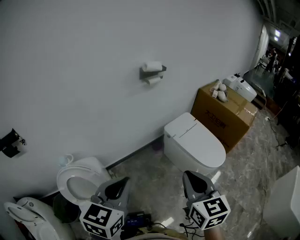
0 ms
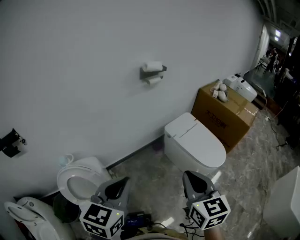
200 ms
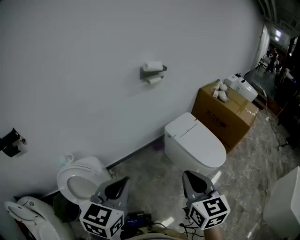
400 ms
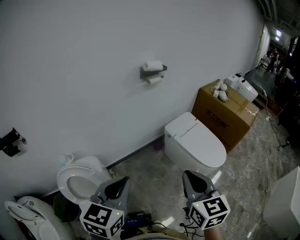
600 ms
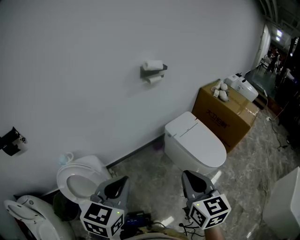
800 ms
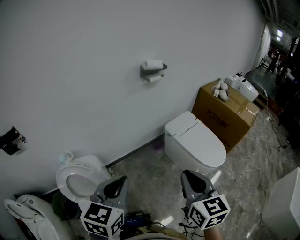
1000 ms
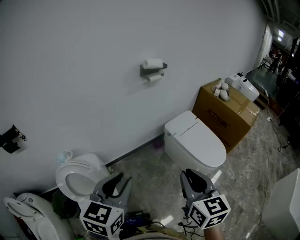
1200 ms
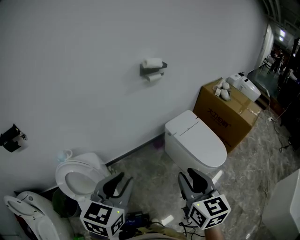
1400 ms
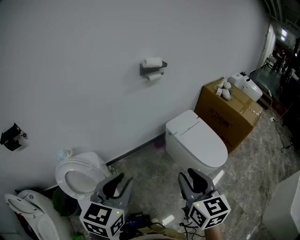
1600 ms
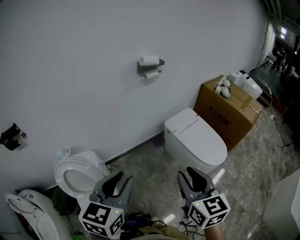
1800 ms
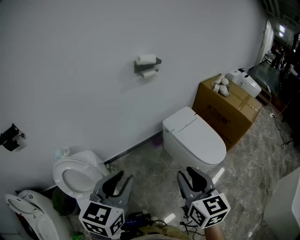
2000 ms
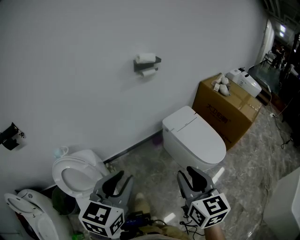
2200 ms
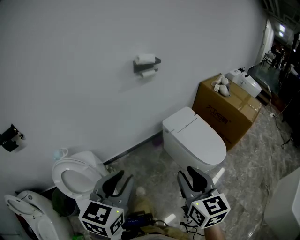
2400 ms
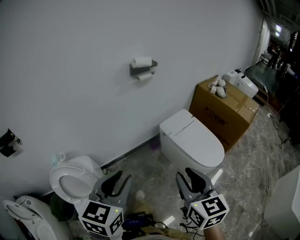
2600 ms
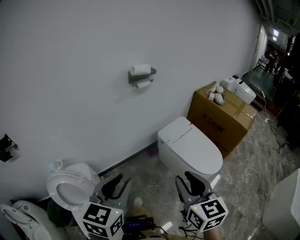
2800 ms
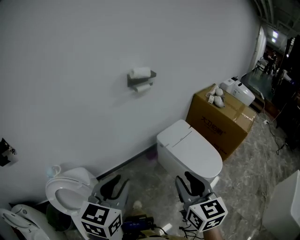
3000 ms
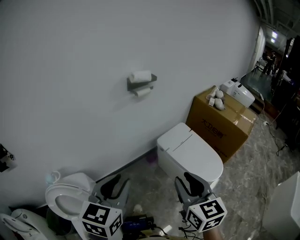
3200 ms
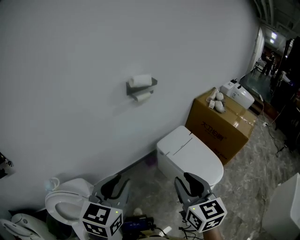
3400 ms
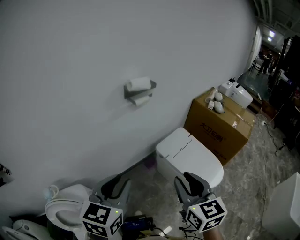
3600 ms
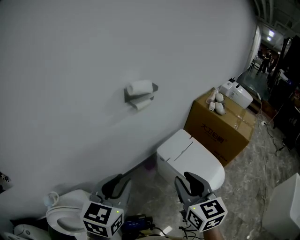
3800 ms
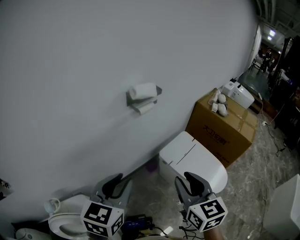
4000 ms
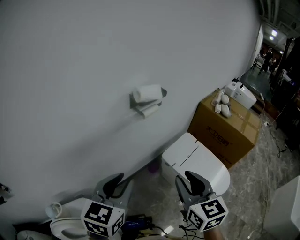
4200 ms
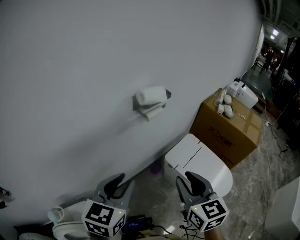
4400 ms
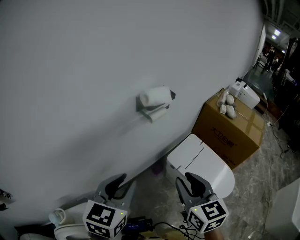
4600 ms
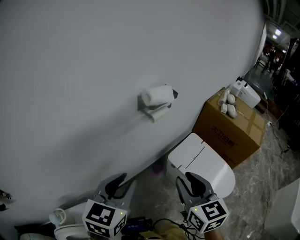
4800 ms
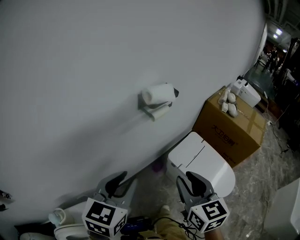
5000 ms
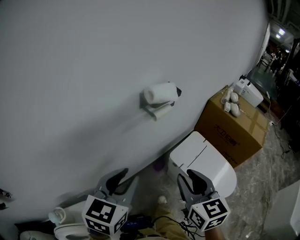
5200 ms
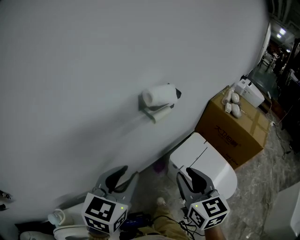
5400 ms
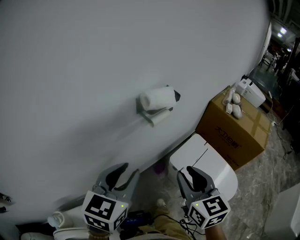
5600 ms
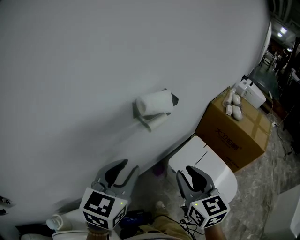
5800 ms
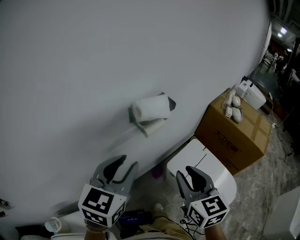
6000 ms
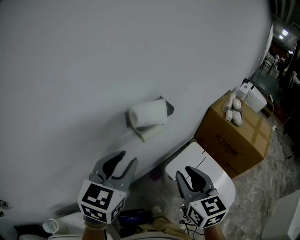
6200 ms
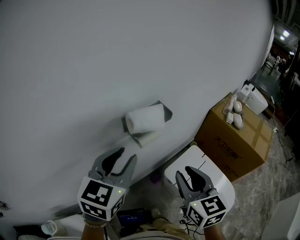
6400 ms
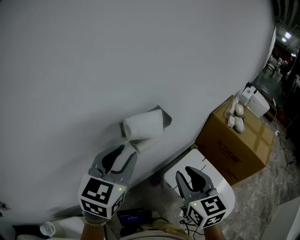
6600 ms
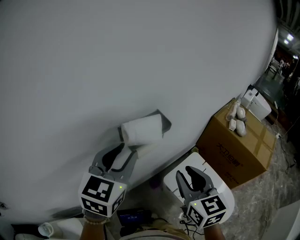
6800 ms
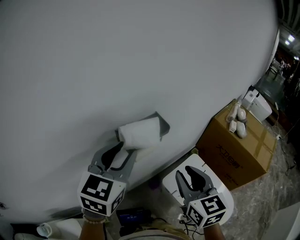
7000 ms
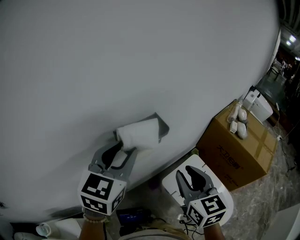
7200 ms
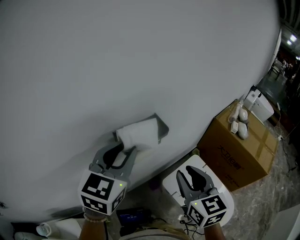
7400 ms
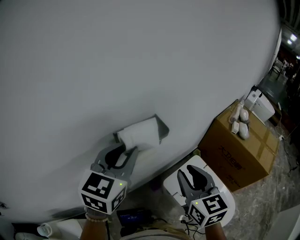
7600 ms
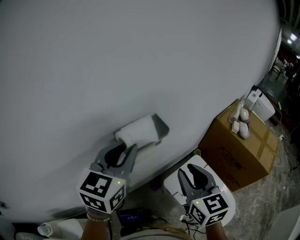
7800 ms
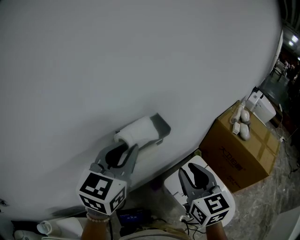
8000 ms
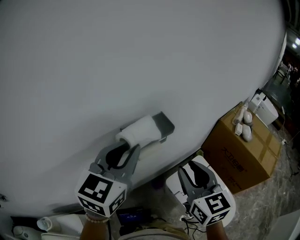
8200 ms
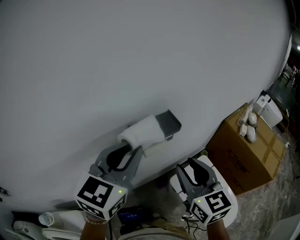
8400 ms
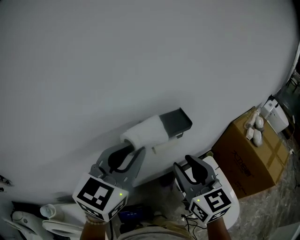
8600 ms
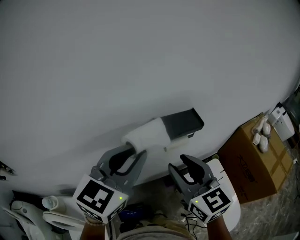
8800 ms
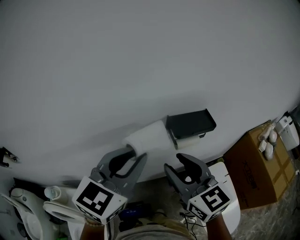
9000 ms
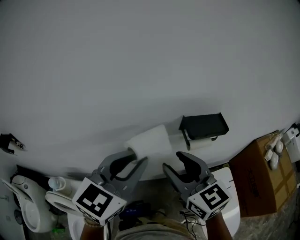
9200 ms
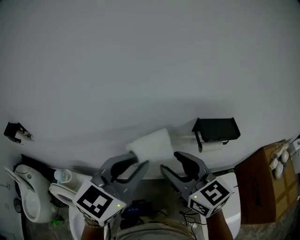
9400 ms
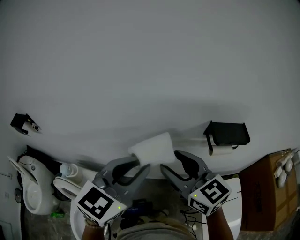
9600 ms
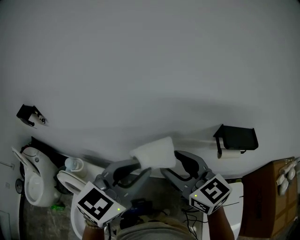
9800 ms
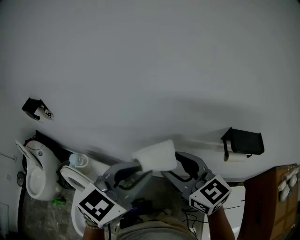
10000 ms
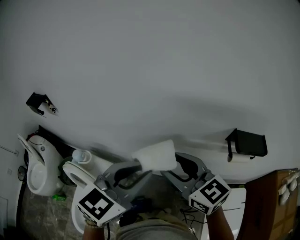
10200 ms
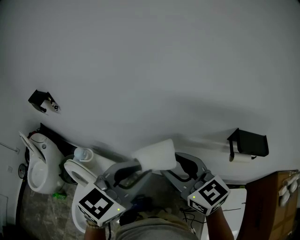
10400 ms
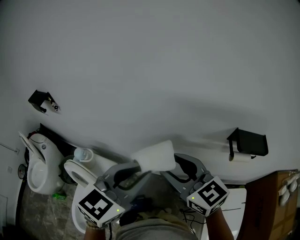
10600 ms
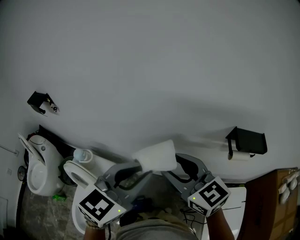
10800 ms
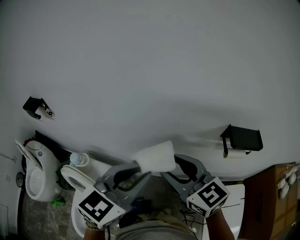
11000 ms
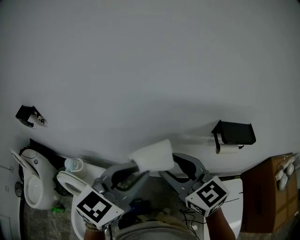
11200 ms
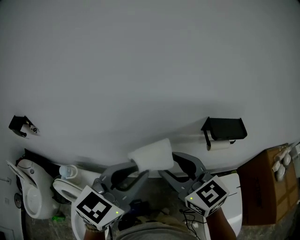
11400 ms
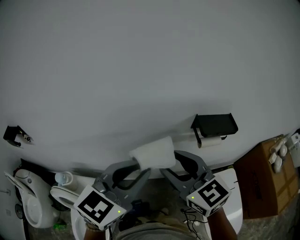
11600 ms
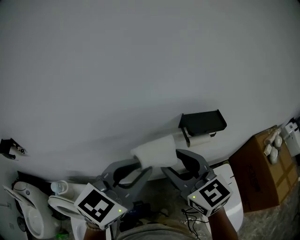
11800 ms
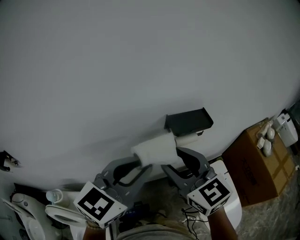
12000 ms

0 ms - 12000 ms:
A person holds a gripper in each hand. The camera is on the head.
0 ms - 1600 ms: The right gripper opens its fingers. The left gripper opens up.
1600 ms - 3000 ms: The grippers both shift forward by roughly 10 cm.
3000 ms - 4400 ms: Both grippers move forward, roughly 25 cm.
4400 ms - 6000 ms: Both grippers move forward, roughly 15 cm.
6000 ms - 7600 ms: The left gripper shifts about 15 cm forward; the right gripper shifts approximately 15 cm forward and to the right.
7600 ms - 9000 ms: The right gripper goes some 20 cm to the left, and swivels some 40 degrees. The left gripper travels backward and to the left by approximately 15 cm.
9000 ms - 10400 ms: The right gripper changes place by about 20 cm, and swivels about 40 degrees. The left gripper changes place by roughly 20 cm, and turns by roughly 20 degrees.
10400 ms - 12000 ms: The left gripper ends up roughly 20 cm from where it was, and swivels roughly 30 degrees, while the right gripper moves roughly 20 cm, and turns by roughly 30 degrees.

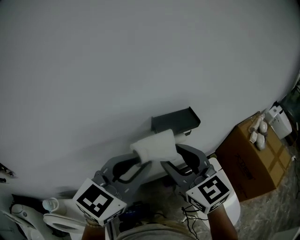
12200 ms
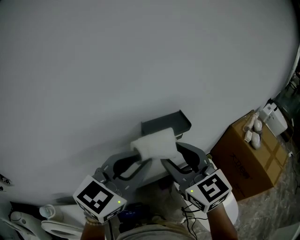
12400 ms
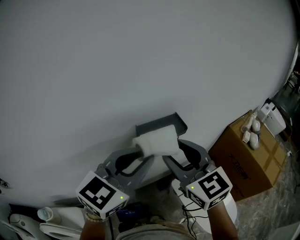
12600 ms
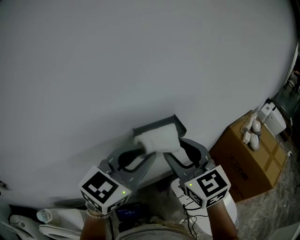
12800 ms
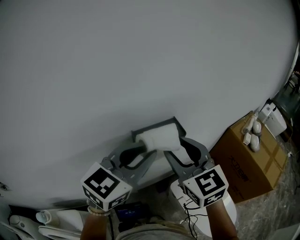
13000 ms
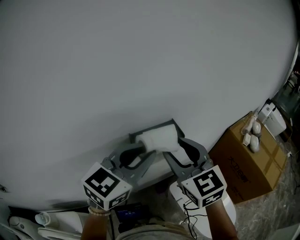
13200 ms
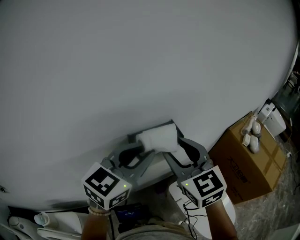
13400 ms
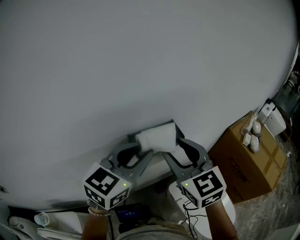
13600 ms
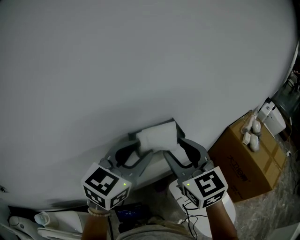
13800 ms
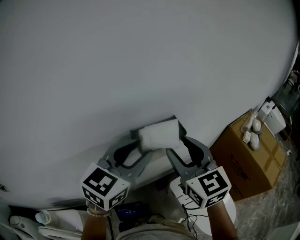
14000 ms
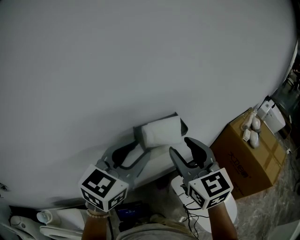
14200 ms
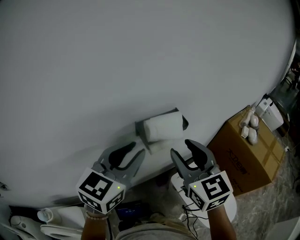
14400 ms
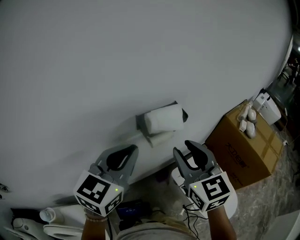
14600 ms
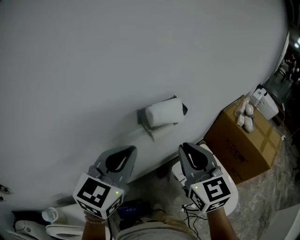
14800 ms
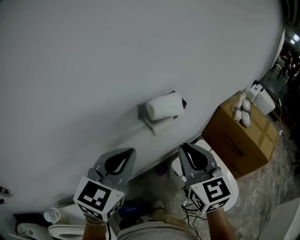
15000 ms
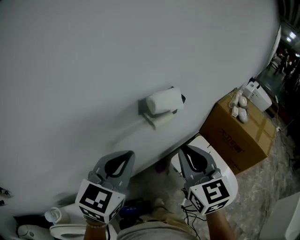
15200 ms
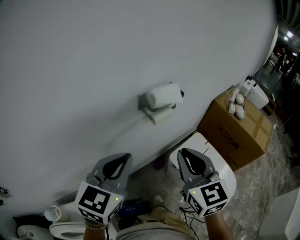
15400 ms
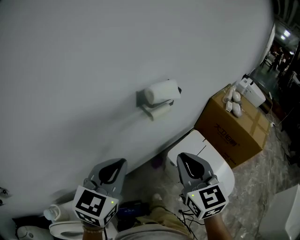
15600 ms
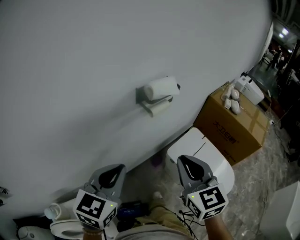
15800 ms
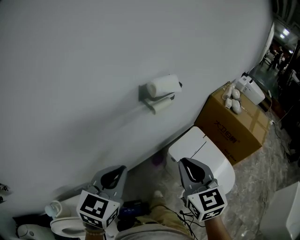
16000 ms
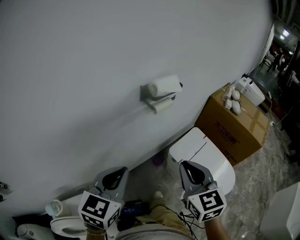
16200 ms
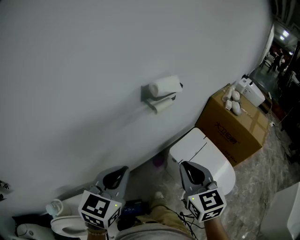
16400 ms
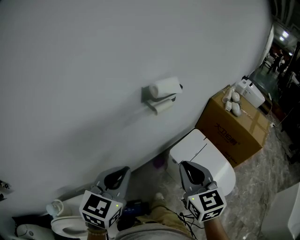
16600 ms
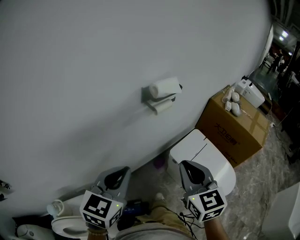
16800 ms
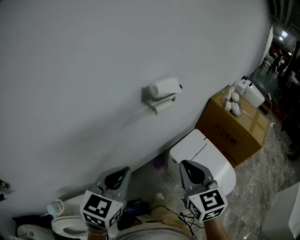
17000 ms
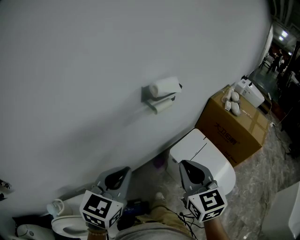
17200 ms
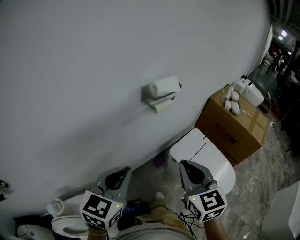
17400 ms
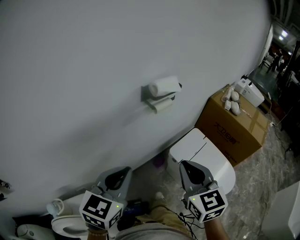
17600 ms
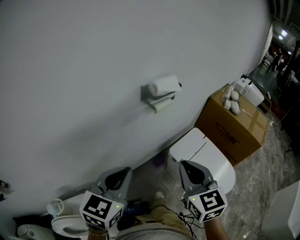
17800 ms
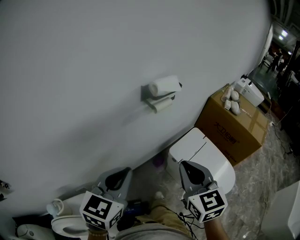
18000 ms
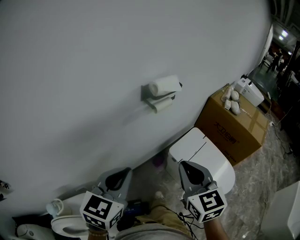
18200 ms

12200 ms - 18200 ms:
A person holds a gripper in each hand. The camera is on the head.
12200 ms - 13800 ms: Both grippers travel together forward and to the right, about 15 cm.
13800 ms - 15200 ms: The left gripper heads backward and to the left, covering roughly 20 cm, and closes its fingers. The right gripper heads backward, covering approximately 15 cm, and closes up.
15200 ms - 16600 ms: The two grippers go some 15 cm backward and downward.
16600 ms - 18200 ms: The two grippers keep their place.

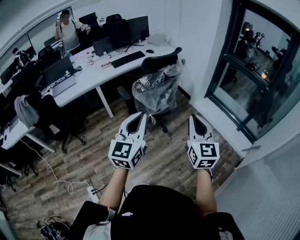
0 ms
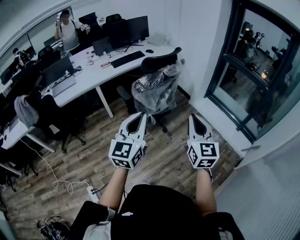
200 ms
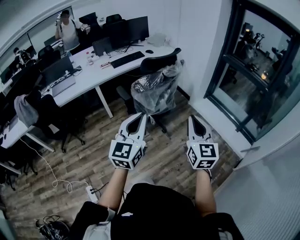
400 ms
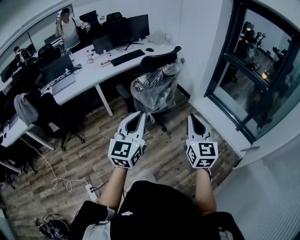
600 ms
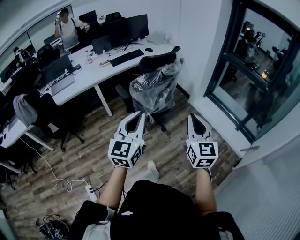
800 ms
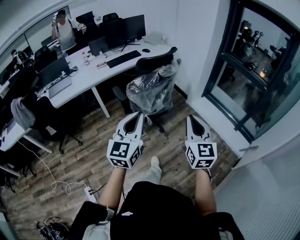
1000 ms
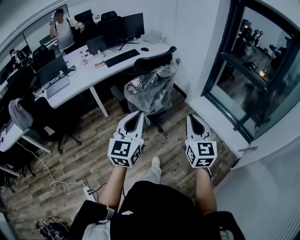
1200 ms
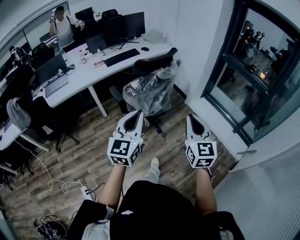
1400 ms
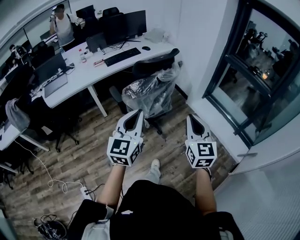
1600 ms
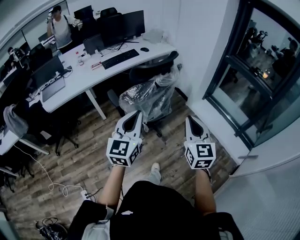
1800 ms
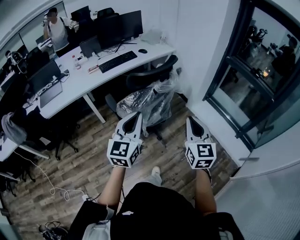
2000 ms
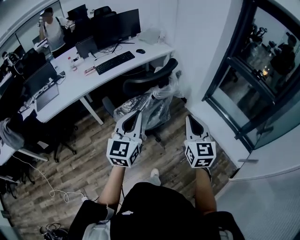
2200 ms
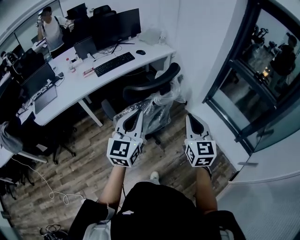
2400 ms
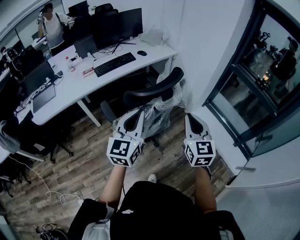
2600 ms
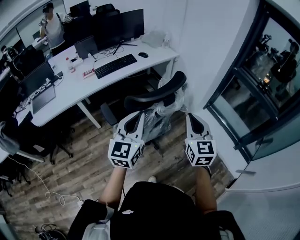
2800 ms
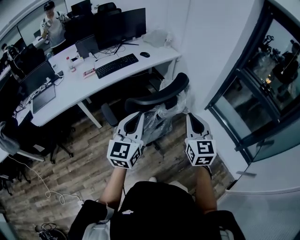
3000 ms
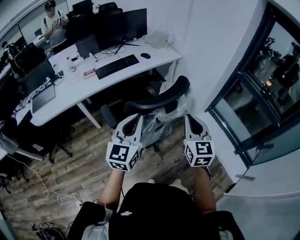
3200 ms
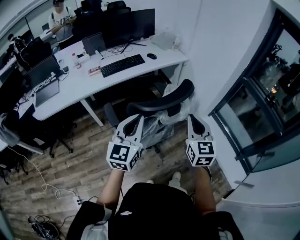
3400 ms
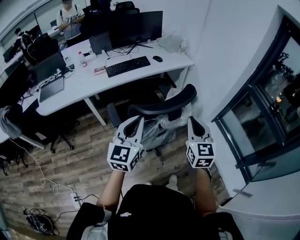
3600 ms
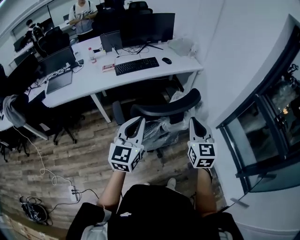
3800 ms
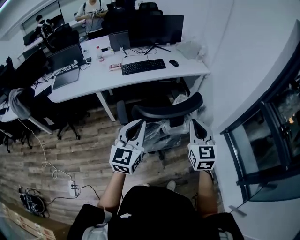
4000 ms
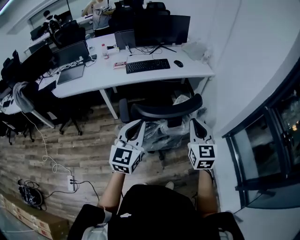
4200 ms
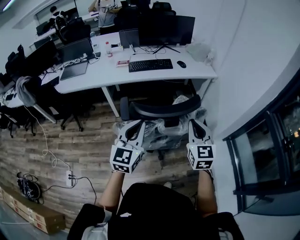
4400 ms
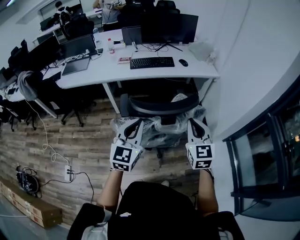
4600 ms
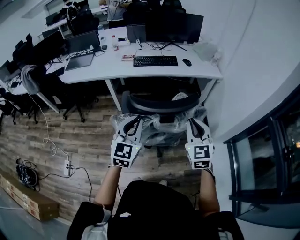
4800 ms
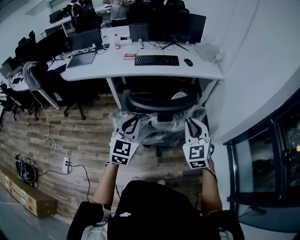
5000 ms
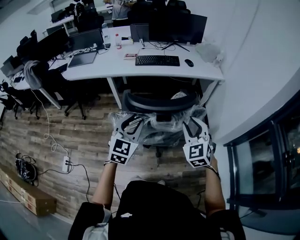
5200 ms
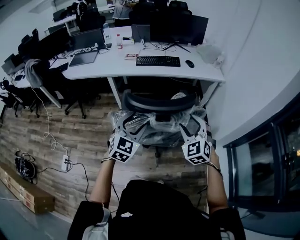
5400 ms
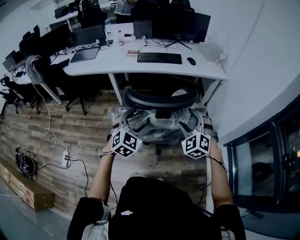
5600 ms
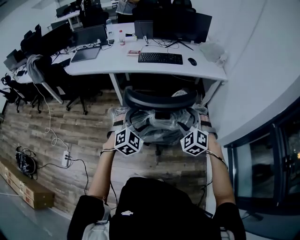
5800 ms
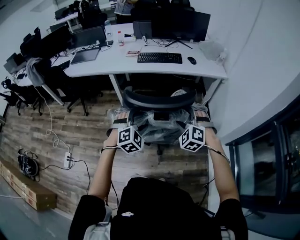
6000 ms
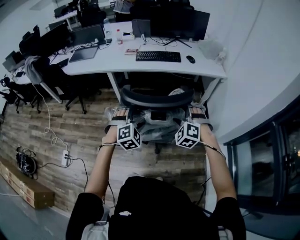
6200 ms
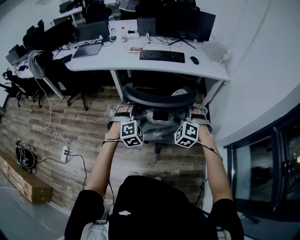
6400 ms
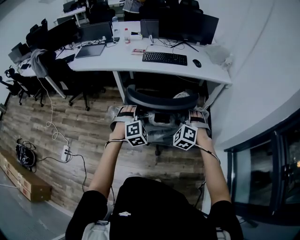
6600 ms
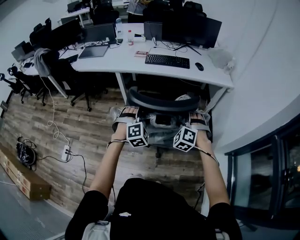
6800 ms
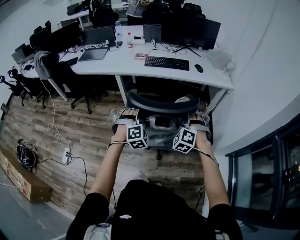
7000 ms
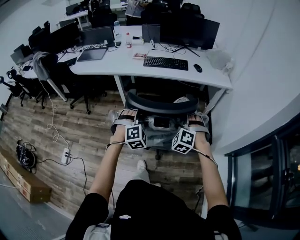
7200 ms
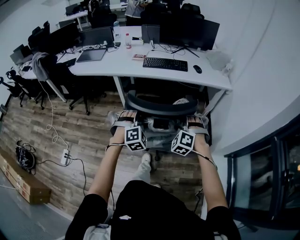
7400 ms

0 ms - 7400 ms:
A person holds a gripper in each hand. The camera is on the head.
0 ms - 1400 ms: Both grippers move forward, some 10 cm.
1400 ms - 3000 ms: The two grippers go about 35 cm forward.
3000 ms - 4400 ms: The right gripper travels forward by about 10 cm, and turns by about 20 degrees; the left gripper swivels some 20 degrees.
4400 ms - 6000 ms: The left gripper shifts approximately 15 cm downward, tilts its fingers about 30 degrees downward, and opens its fingers, while the right gripper shifts some 10 cm downward and forward, rolls counterclockwise, seen from behind, by roughly 60 degrees, and opens.
6000 ms - 7400 ms: The left gripper ends up approximately 5 cm from where it was. The right gripper changes place by some 5 cm.
